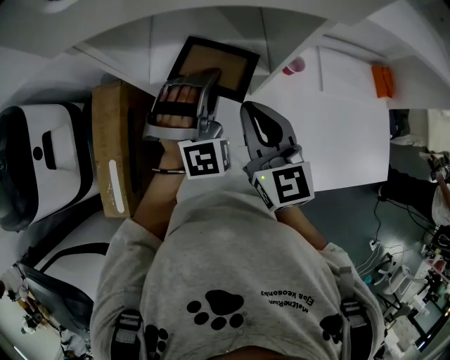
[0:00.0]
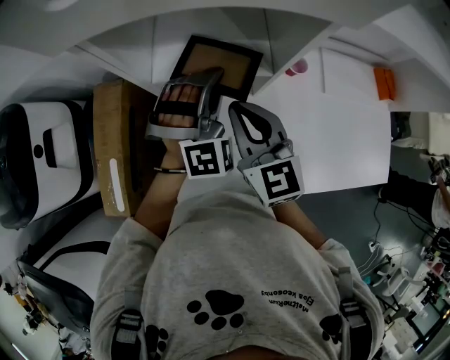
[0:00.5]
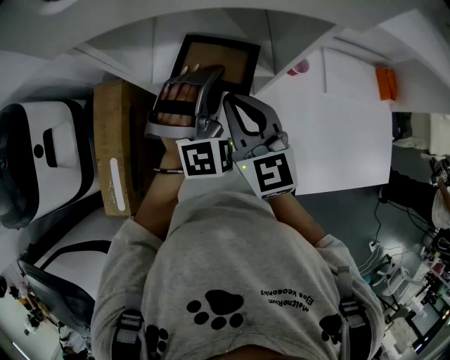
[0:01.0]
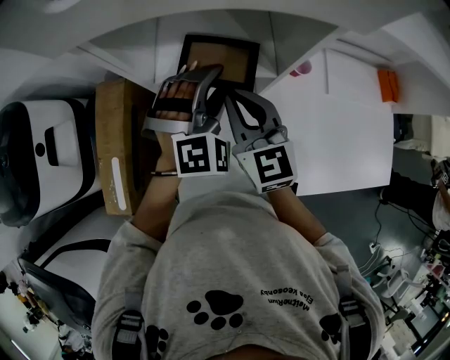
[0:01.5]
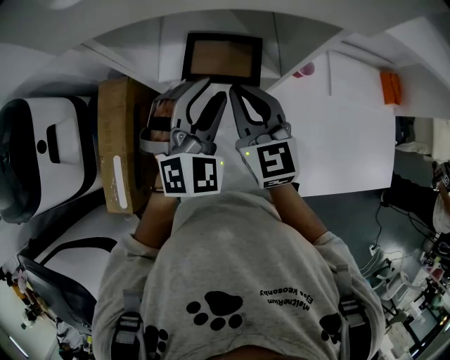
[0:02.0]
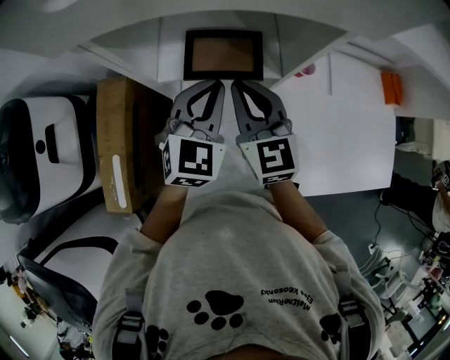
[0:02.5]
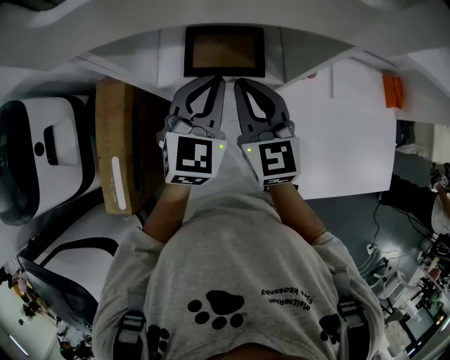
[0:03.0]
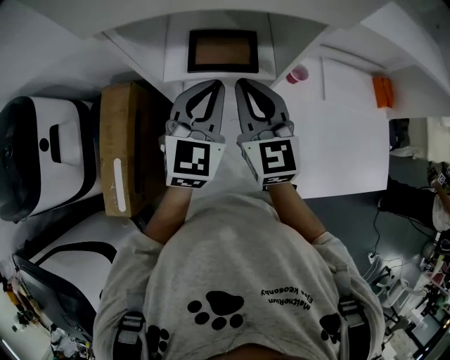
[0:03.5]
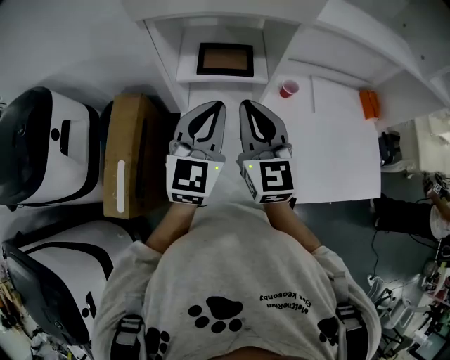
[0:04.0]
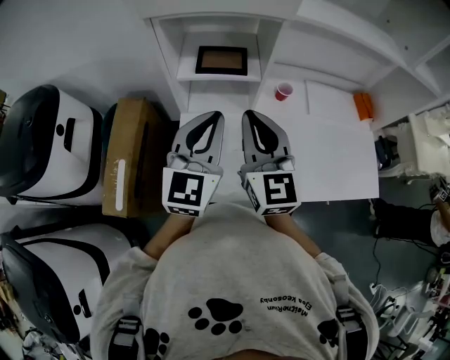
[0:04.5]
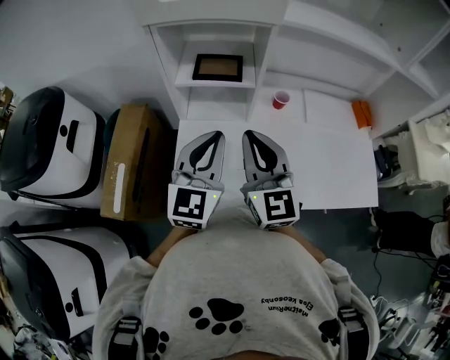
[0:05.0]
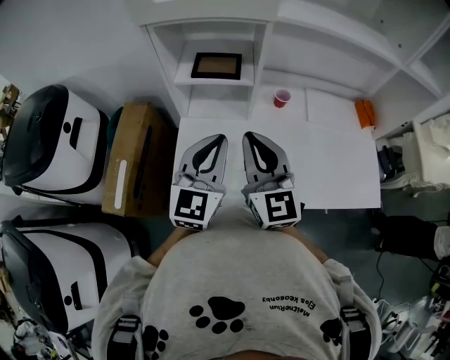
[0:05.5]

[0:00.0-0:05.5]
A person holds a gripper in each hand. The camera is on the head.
0:00.0 to 0:02.0: The left gripper swivels roughly 30 degrees, and opens up; the right gripper shifts by about 5 cm.
0:02.0 to 0:03.5: The left gripper rotates some 30 degrees, and closes its fingers.
0:03.5 to 0:05.5: The two grippers go roughly 20 cm backward.

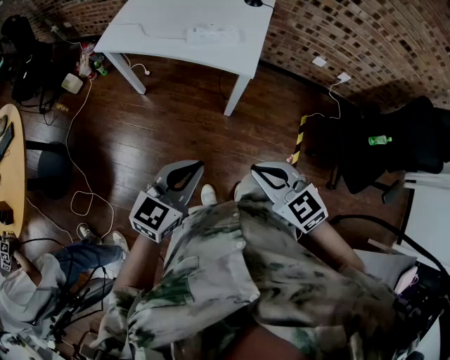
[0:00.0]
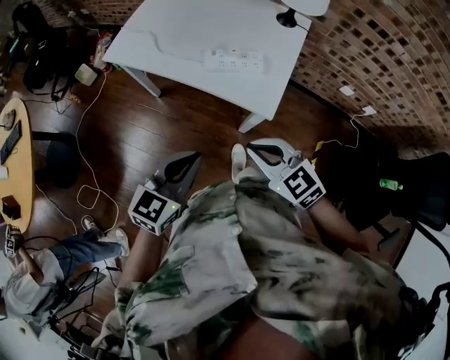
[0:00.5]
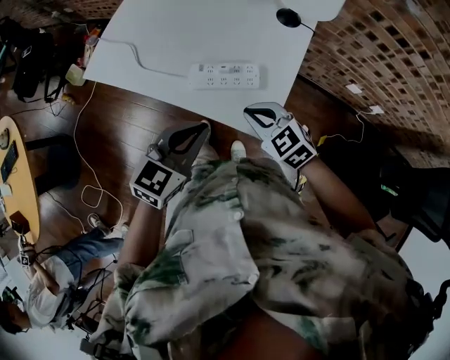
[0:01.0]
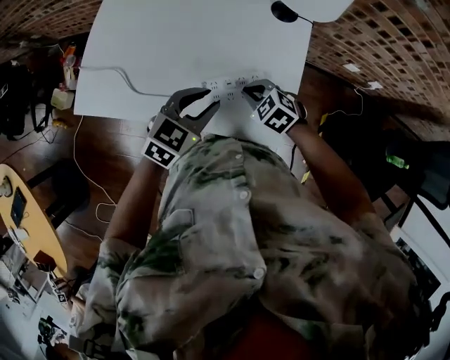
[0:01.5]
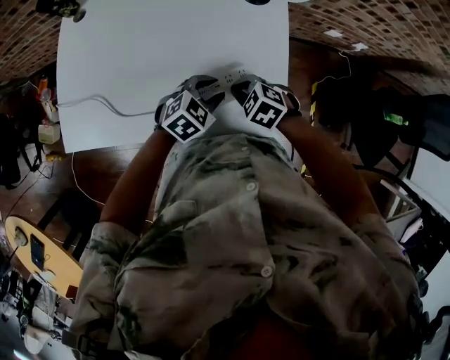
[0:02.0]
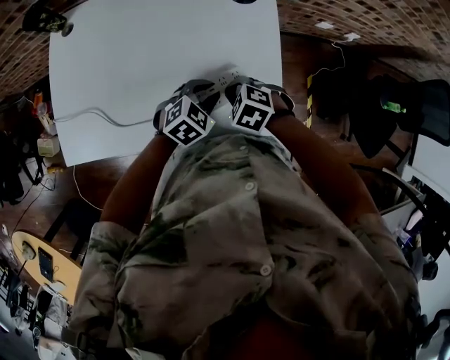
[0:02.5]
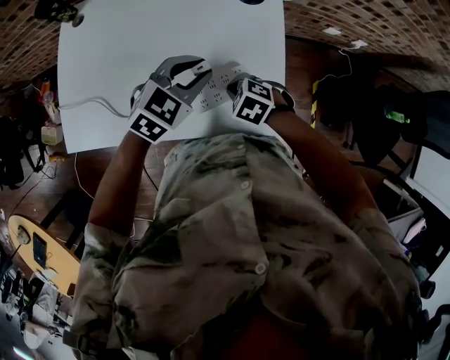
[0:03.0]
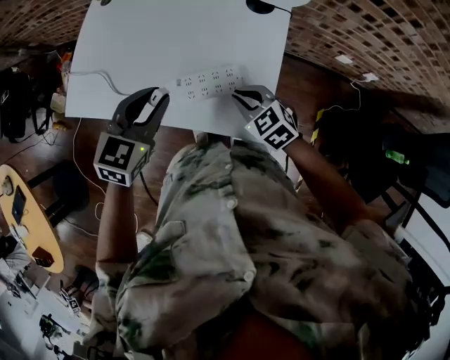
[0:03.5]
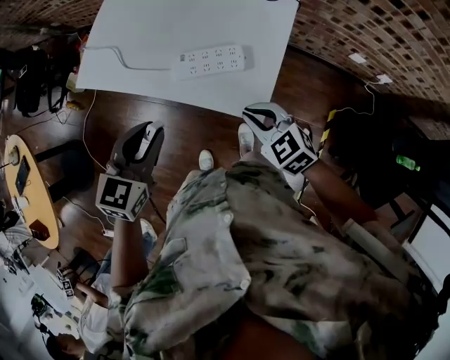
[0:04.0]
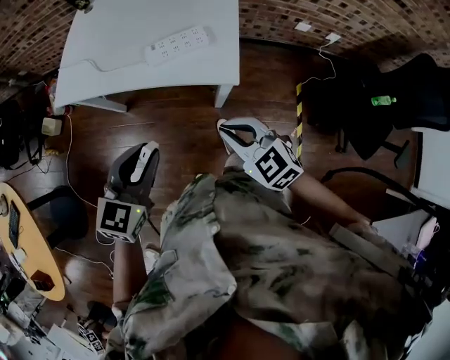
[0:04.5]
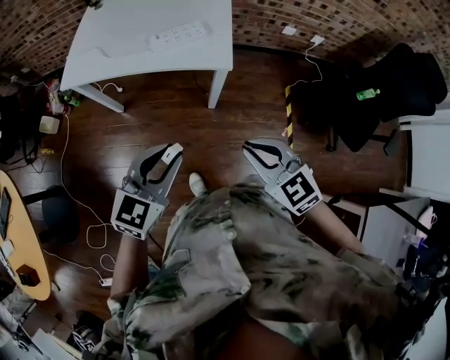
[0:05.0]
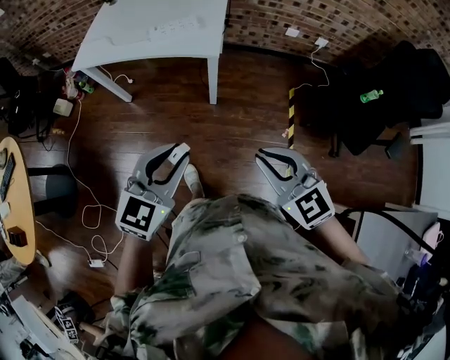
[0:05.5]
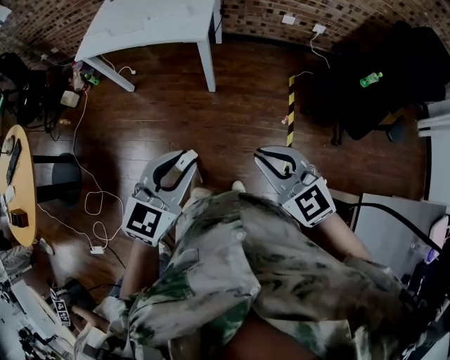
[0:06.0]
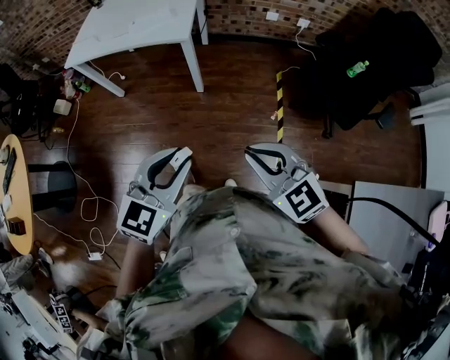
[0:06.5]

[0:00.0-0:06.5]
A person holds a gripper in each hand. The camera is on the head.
0:00.0 to 0:02.0: Both grippers are carried approximately 50 cm. The right gripper tilts its fingers some 30 degrees downward; the left gripper changes its angle by approximately 50 degrees, and opens its fingers.
0:02.0 to 0:04.5: The right gripper shifts by some 35 cm, and points its fingers approximately 30 degrees further upward. Meanwhile the left gripper moves roughly 40 cm, and rotates some 40 degrees.
0:04.5 to 0:06.5: The two grippers travel together, backward and to the right, approximately 50 cm.

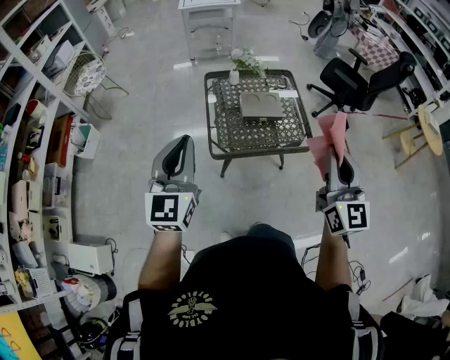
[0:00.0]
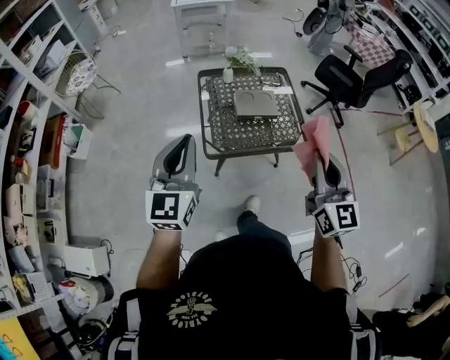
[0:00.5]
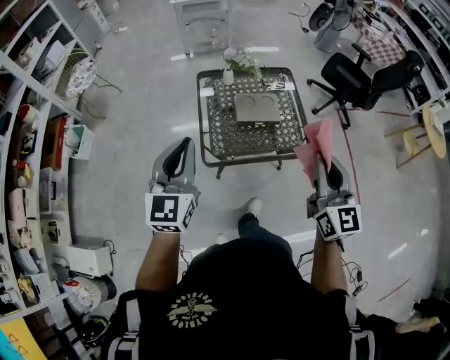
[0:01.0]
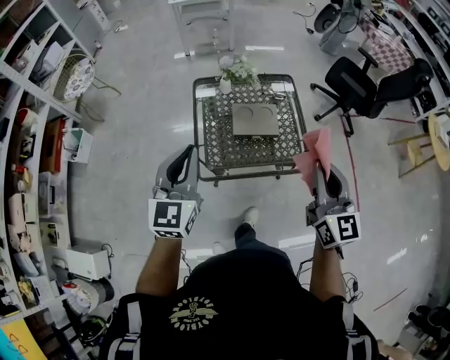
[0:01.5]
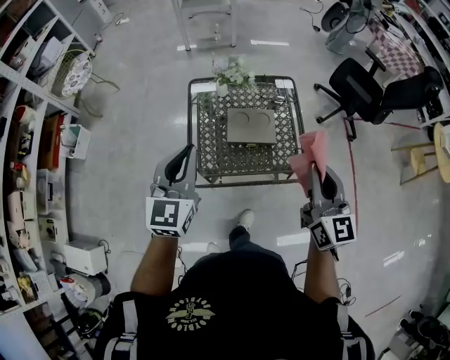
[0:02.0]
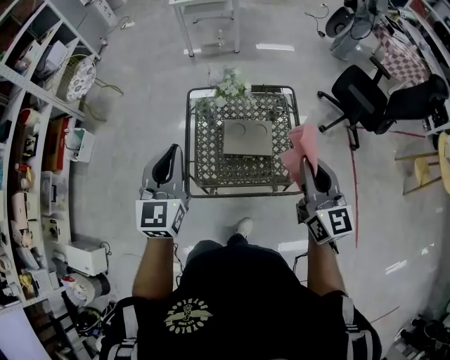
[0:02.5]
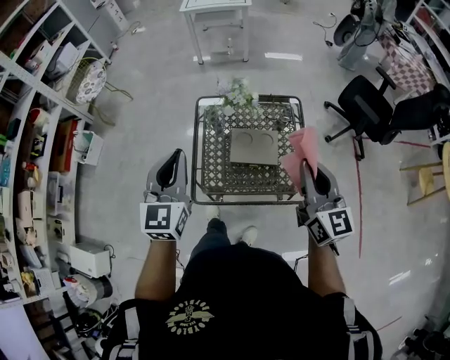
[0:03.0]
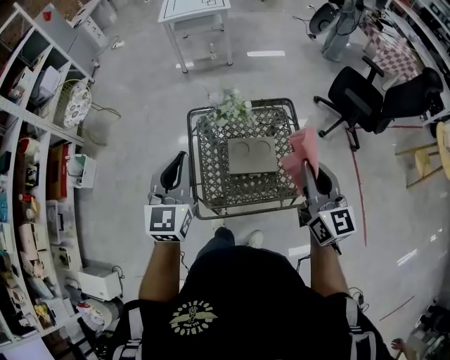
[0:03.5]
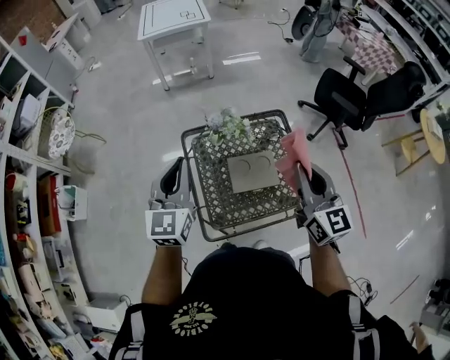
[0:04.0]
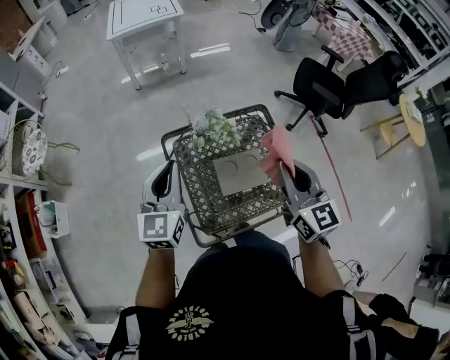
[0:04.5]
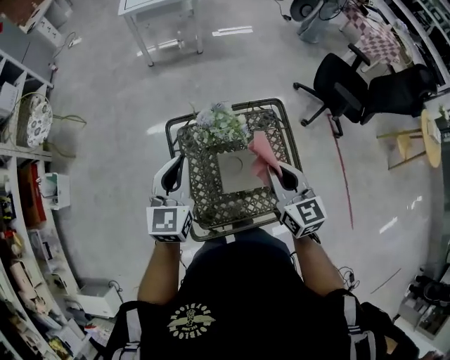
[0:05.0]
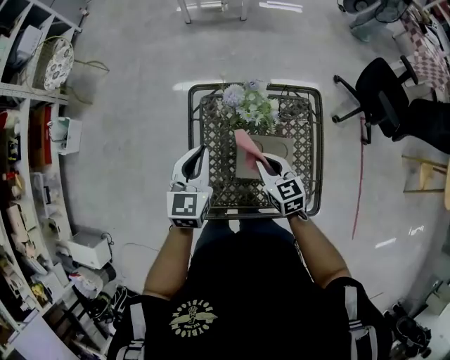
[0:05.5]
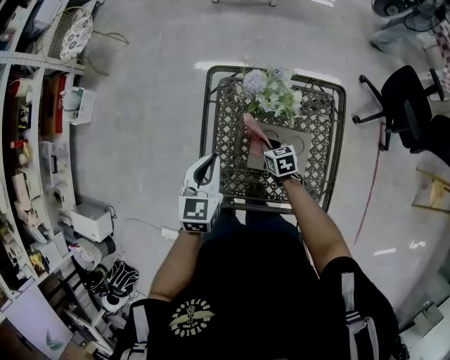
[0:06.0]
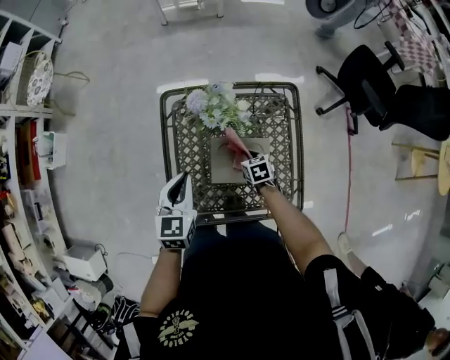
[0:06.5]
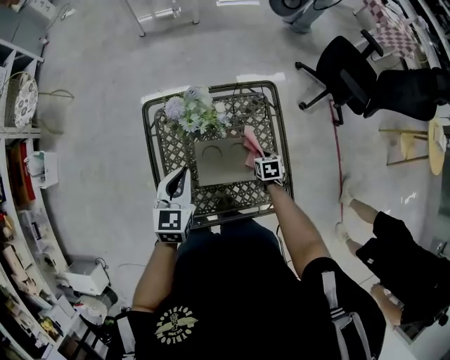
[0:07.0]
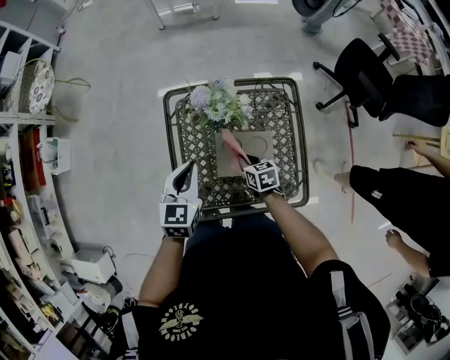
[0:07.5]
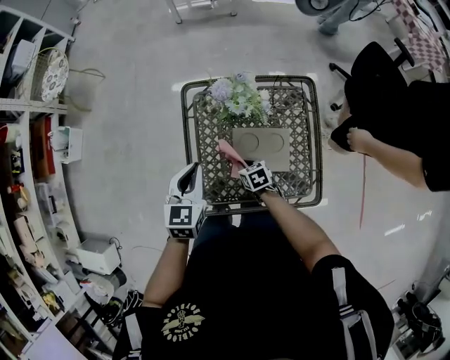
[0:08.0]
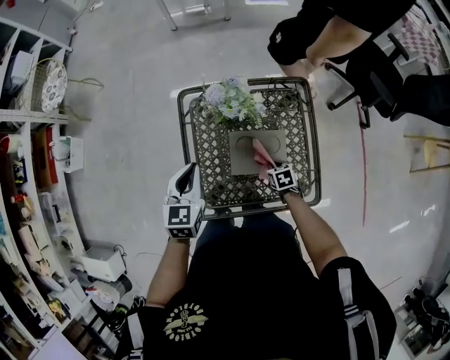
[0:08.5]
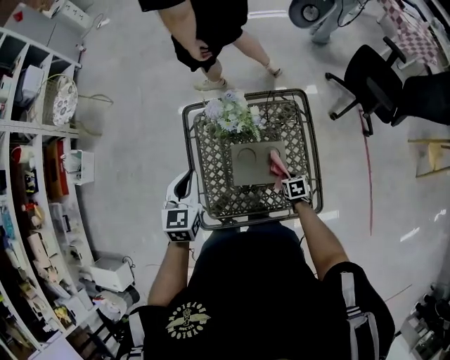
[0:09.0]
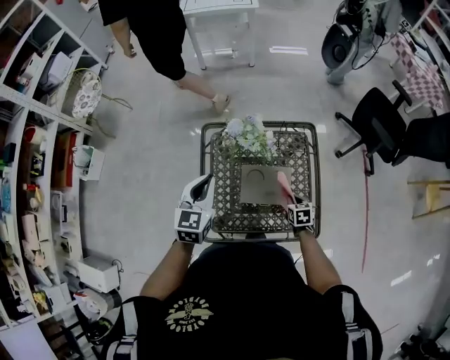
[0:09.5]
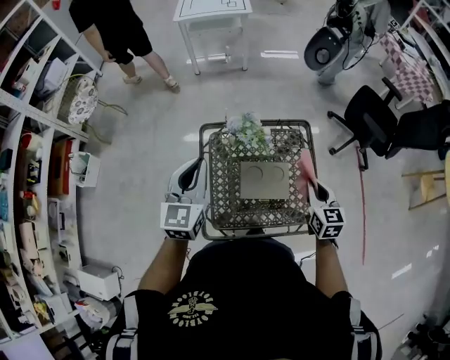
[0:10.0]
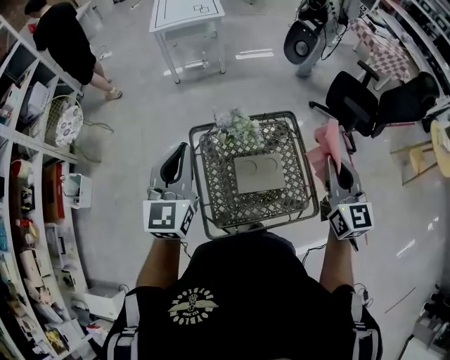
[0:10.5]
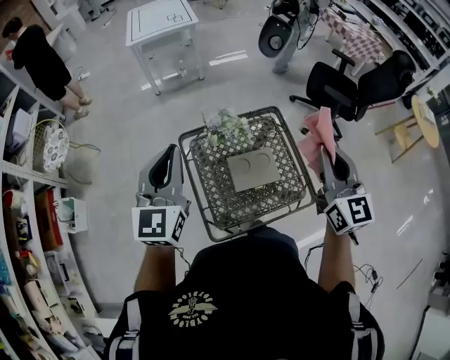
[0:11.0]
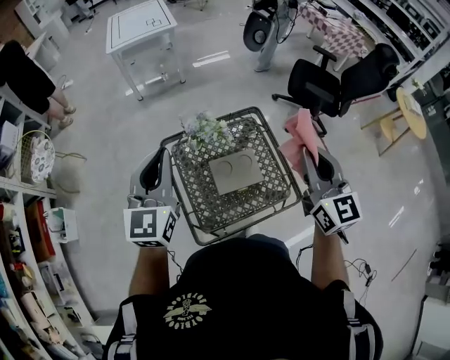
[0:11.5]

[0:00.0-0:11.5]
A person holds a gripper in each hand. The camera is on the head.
0:00.0 to 0:02.0: The right gripper is displaced forward by about 25 cm; the left gripper goes roughly 30 cm forward and to the right.
0:02.0 to 0:04.0: Both grippers move forward, about 20 cm.
0:04.0 to 0:06.0: The left gripper heads downward, covering roughly 25 cm, and changes its angle by approximately 30 degrees; the right gripper goes roughly 50 cm downward, and points its fingers roughly 50 degrees further downward.
0:07.5 to 0:09.5: The right gripper heads to the right and backward, covering approximately 15 cm, while the left gripper shifts approximately 10 cm upward.
0:09.5 to 0:11.5: The left gripper travels upward by roughly 20 cm, and changes its angle by about 30 degrees; the right gripper travels upward by about 50 cm, and points its fingers approximately 50 degrees further upward.

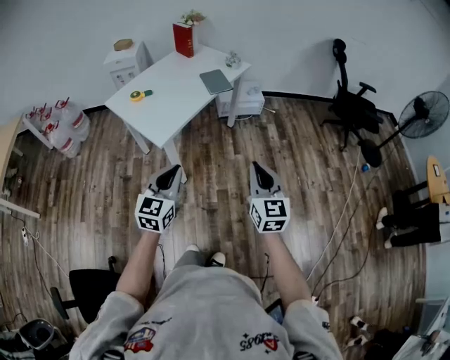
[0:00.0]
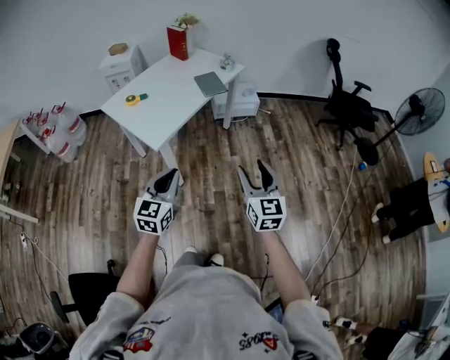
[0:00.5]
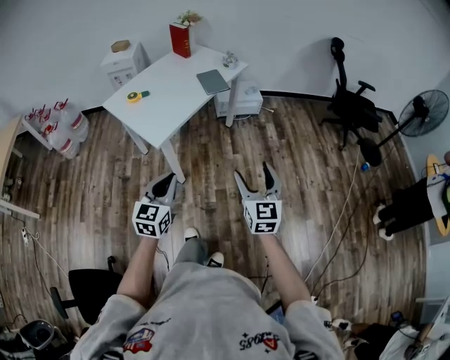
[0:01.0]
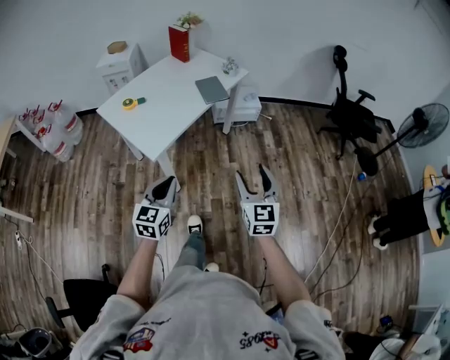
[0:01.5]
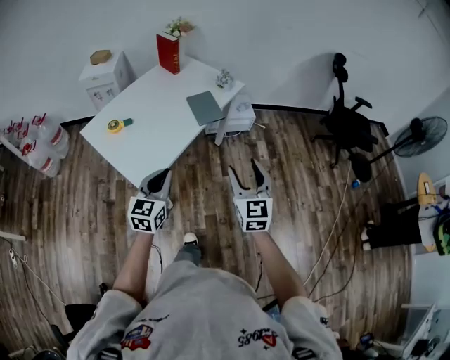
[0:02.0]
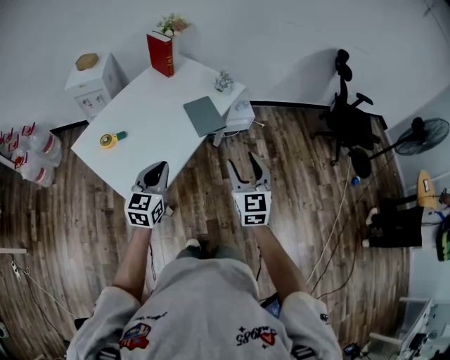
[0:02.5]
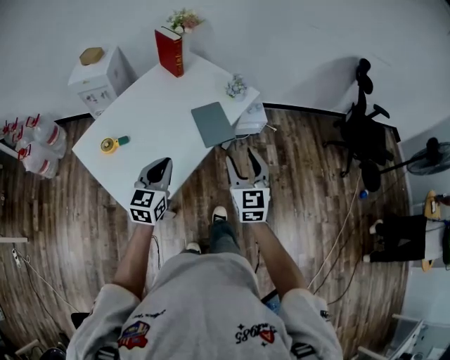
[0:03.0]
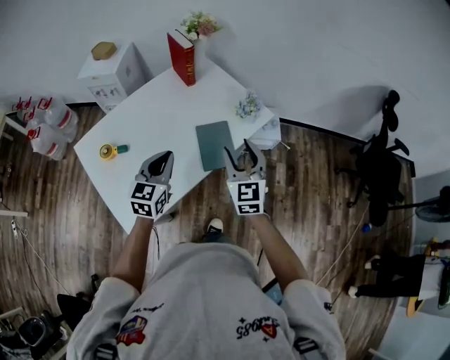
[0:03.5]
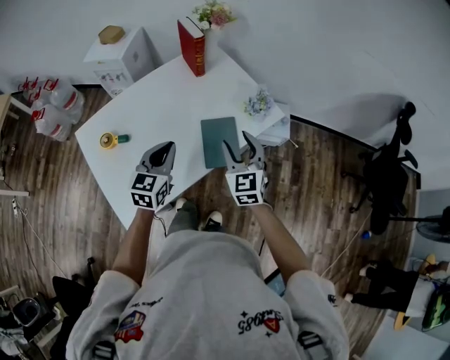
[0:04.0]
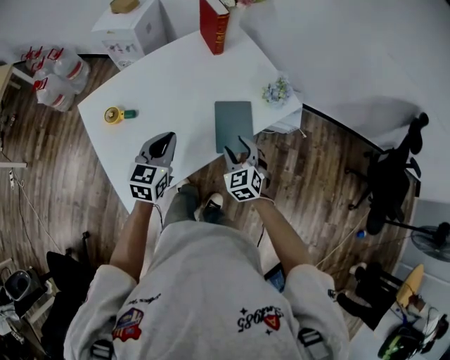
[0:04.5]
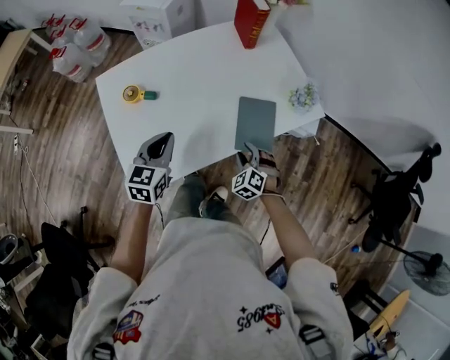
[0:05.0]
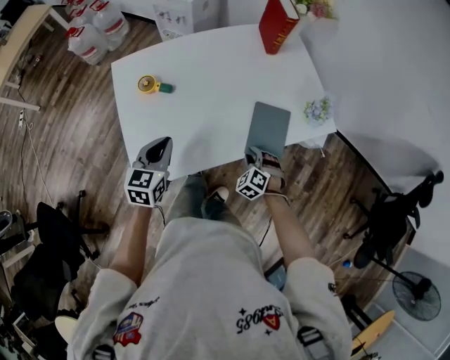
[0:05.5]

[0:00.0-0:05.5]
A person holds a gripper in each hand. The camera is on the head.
0:00.0 to 0:02.0: The grippers both shift forward by approximately 30 cm. The right gripper opens its fingers.
0:02.0 to 0:03.5: Both grippers move forward, about 40 cm.
0:03.5 to 0:05.5: The left gripper moves to the left and downward, about 20 cm, and rotates approximately 30 degrees, while the right gripper travels downward by approximately 30 cm, and tips its fingers downward by about 40 degrees.
